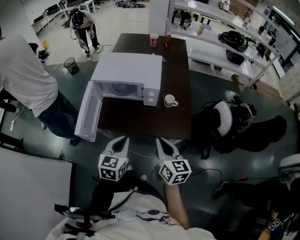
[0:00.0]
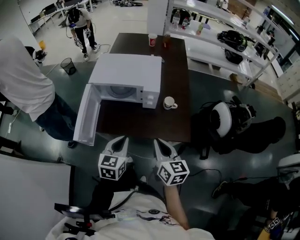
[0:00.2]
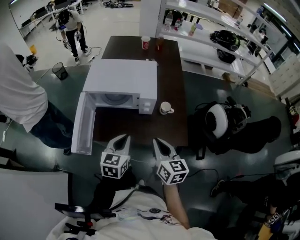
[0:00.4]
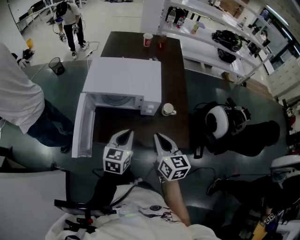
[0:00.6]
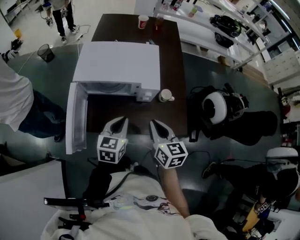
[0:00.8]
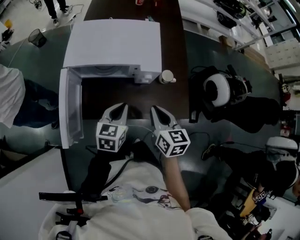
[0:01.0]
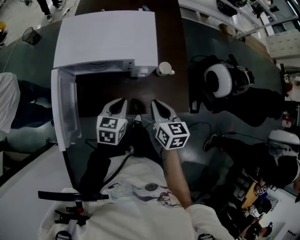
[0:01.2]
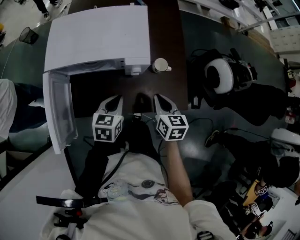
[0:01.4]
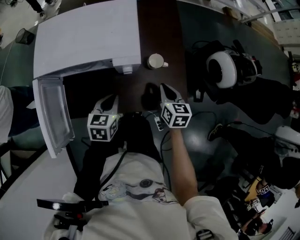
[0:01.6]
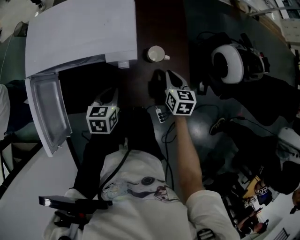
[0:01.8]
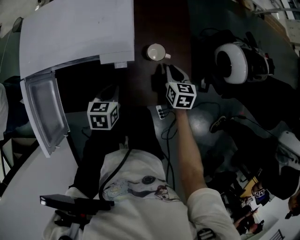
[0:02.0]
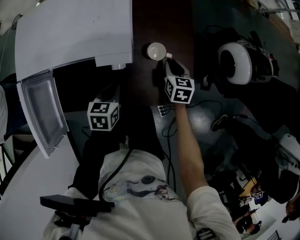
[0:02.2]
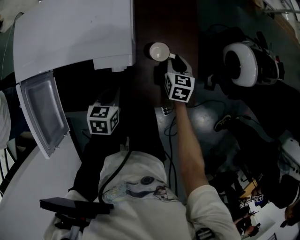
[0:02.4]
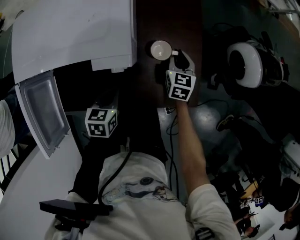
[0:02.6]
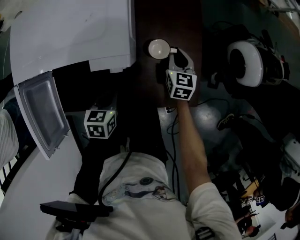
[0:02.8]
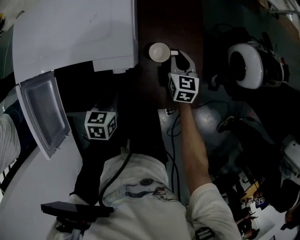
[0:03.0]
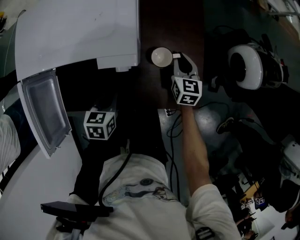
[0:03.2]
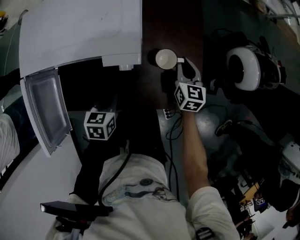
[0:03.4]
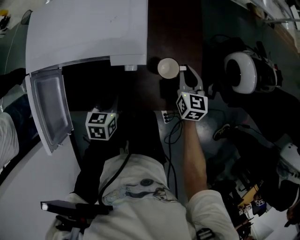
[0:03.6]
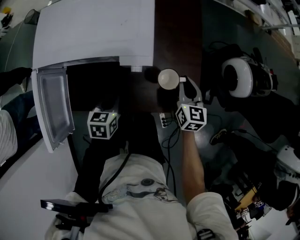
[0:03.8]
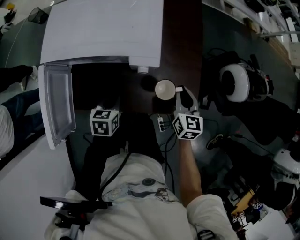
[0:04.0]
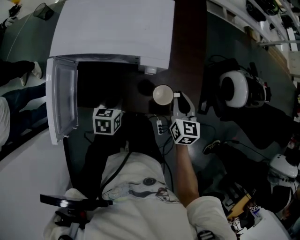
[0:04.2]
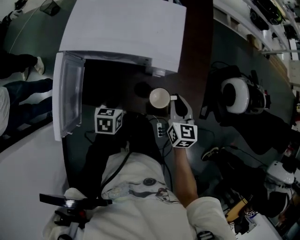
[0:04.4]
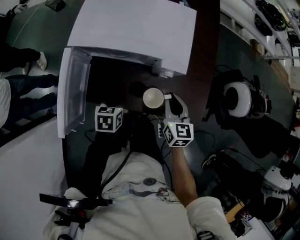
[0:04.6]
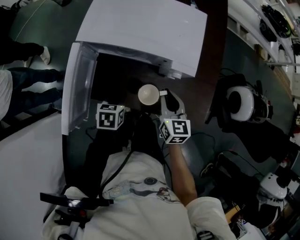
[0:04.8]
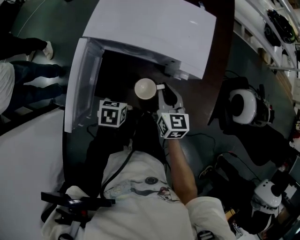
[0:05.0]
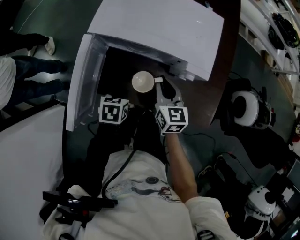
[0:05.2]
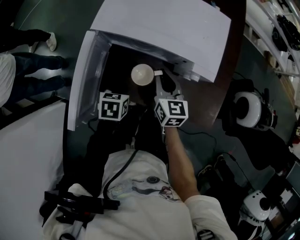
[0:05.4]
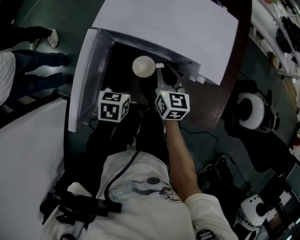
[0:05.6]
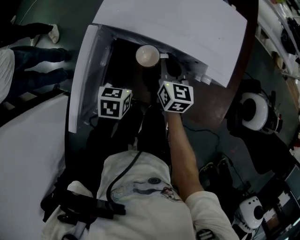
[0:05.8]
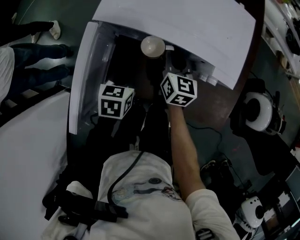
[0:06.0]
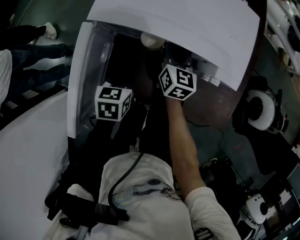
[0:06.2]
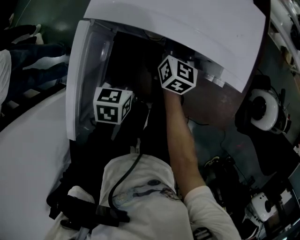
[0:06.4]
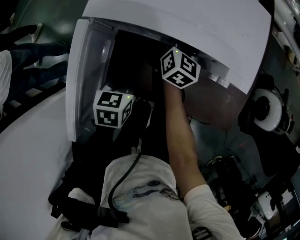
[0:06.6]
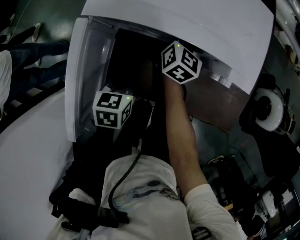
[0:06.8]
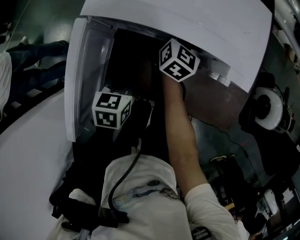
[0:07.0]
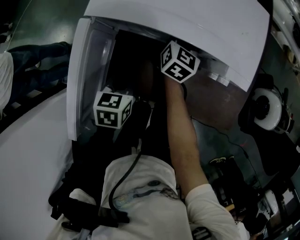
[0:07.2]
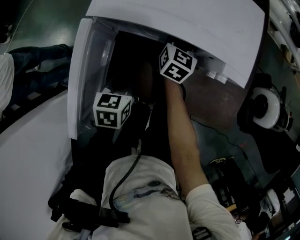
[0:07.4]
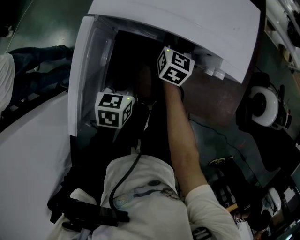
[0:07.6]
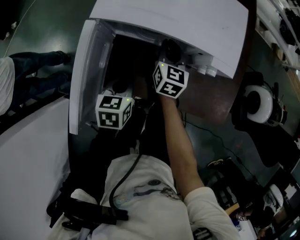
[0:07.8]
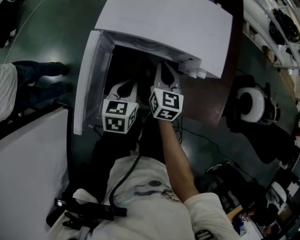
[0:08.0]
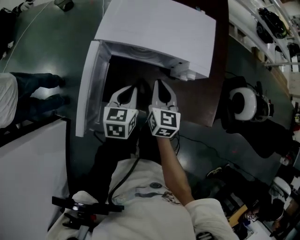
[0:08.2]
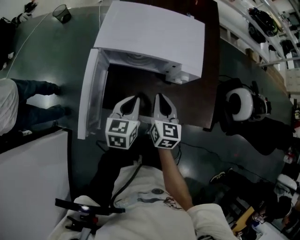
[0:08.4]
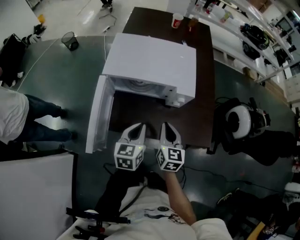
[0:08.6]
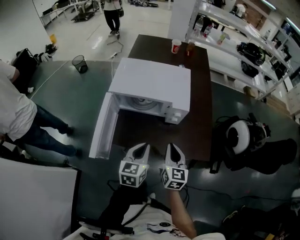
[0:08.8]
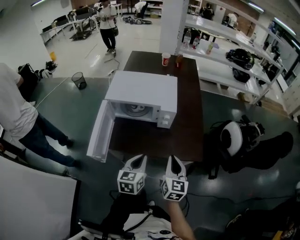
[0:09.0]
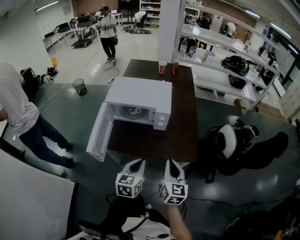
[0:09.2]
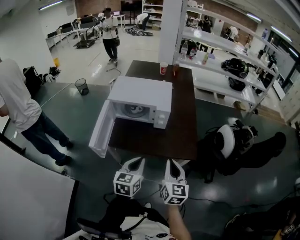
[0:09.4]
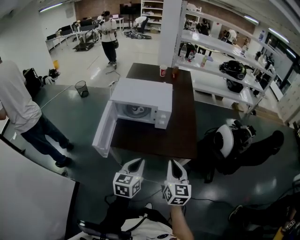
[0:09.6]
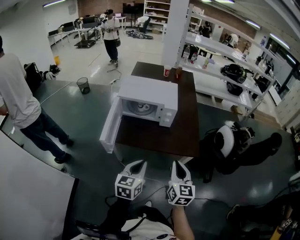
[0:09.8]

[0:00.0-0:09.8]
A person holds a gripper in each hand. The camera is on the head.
0:00.0 to 0:01.4: Both grippers move forward and downward, roughly 20 cm. The left gripper turns by some 20 degrees. The right gripper rotates about 20 degrees.
0:01.4 to 0:02.8: The right gripper goes about 20 cm forward and downward, while the left gripper travels downward by approximately 10 cm.
0:02.8 to 0:04.2: The left gripper goes roughly 5 cm to the left. The right gripper heads backward and upward, covering roughly 20 cm.
0:04.2 to 0:05.6: The right gripper moves to the left, roughly 25 cm. The left gripper travels to the left by approximately 10 cm.
0:05.6 to 0:07.0: The right gripper travels forward by about 15 cm, and swivels roughly 30 degrees.
0:07.0 to 0:08.4: The left gripper travels upward and to the right by roughly 15 cm, and changes its angle by about 20 degrees; the right gripper heads backward and upward, covering about 25 cm.
0:08.4 to 0:09.8: The right gripper heads backward, to the right and upward, covering approximately 30 cm; the left gripper moves backward and upward, approximately 25 cm.

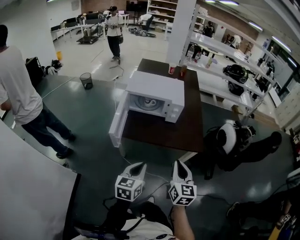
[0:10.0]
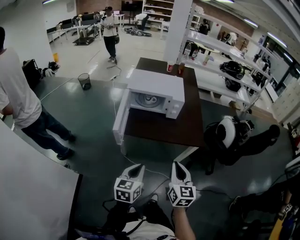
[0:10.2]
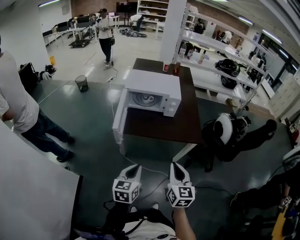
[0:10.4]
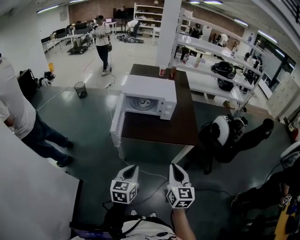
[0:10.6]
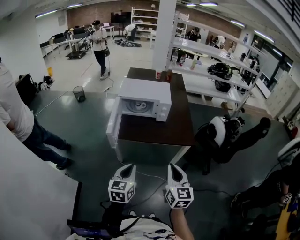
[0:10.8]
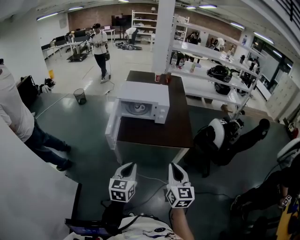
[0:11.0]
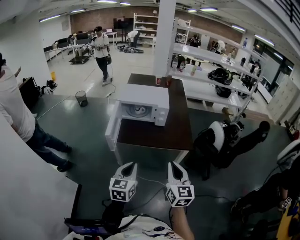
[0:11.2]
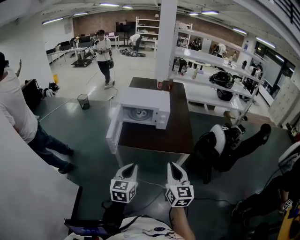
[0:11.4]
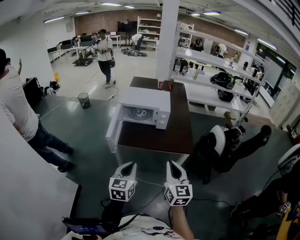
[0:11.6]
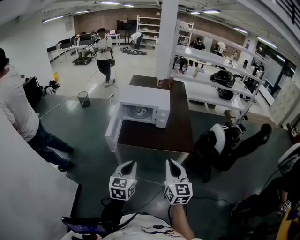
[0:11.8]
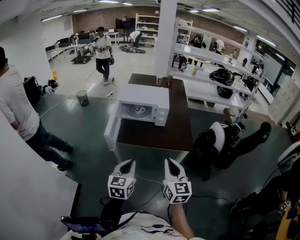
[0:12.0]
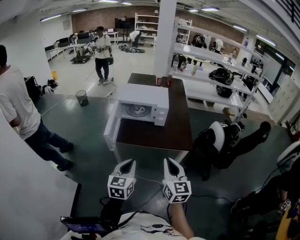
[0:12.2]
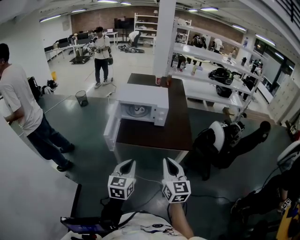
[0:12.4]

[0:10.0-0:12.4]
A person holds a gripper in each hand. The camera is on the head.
0:10.0 to 0:11.2: The right gripper travels backward by about 5 cm. The left gripper ends up some 5 cm from where it was.
0:11.2 to 0:12.4: The grippers make only small movements.

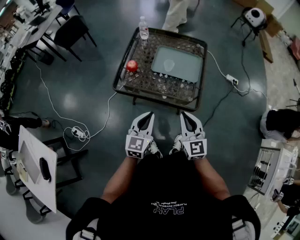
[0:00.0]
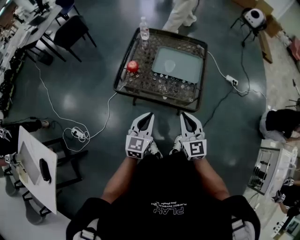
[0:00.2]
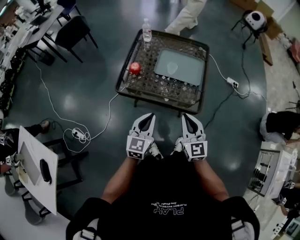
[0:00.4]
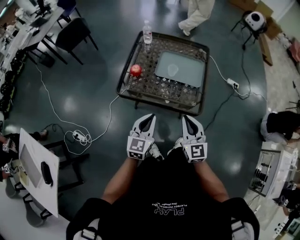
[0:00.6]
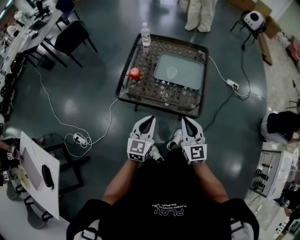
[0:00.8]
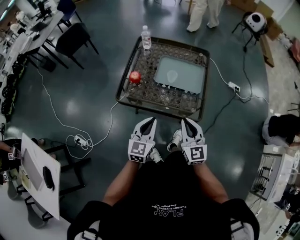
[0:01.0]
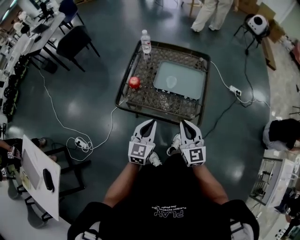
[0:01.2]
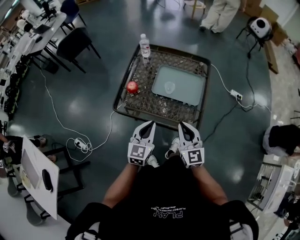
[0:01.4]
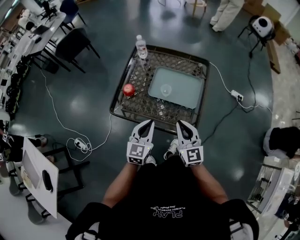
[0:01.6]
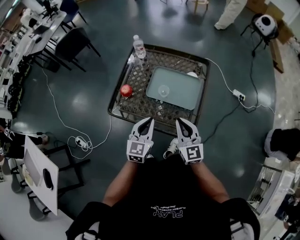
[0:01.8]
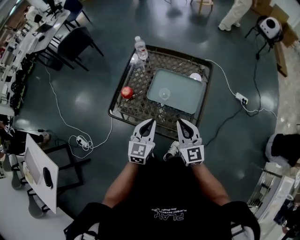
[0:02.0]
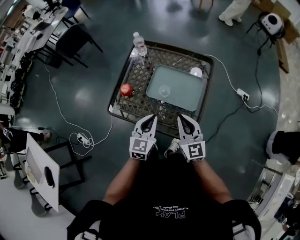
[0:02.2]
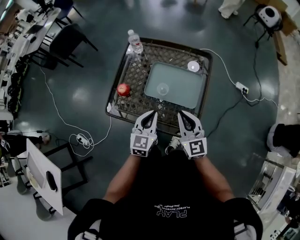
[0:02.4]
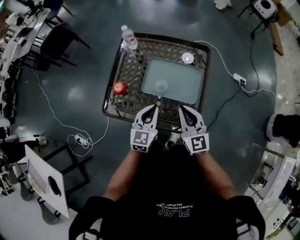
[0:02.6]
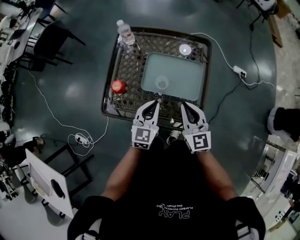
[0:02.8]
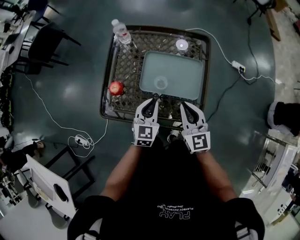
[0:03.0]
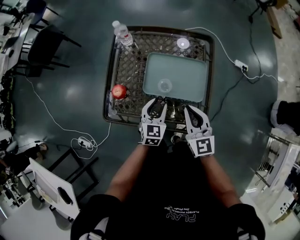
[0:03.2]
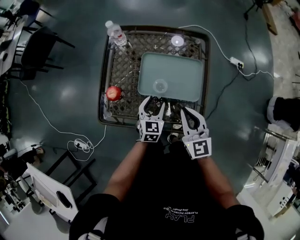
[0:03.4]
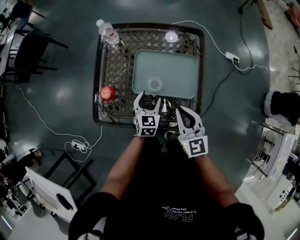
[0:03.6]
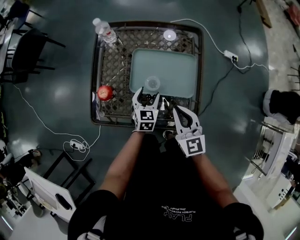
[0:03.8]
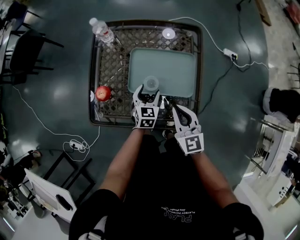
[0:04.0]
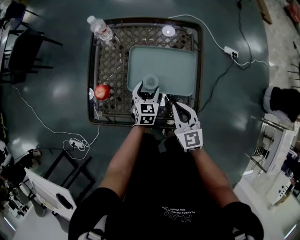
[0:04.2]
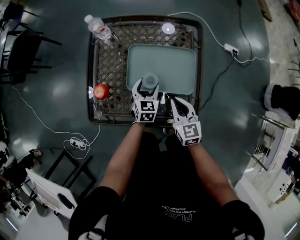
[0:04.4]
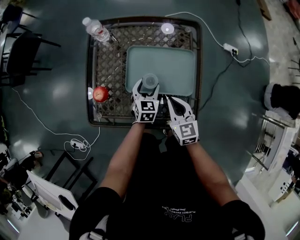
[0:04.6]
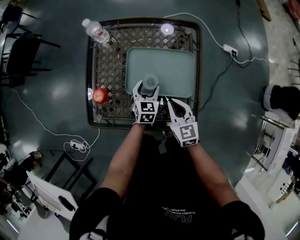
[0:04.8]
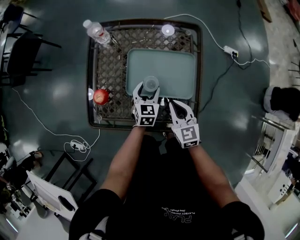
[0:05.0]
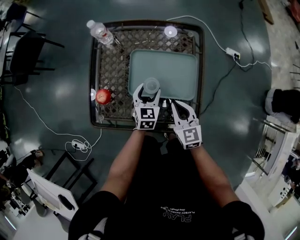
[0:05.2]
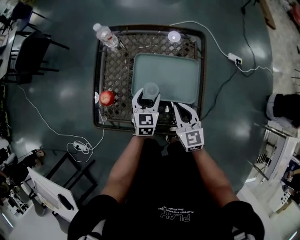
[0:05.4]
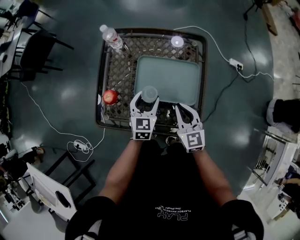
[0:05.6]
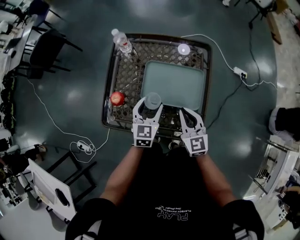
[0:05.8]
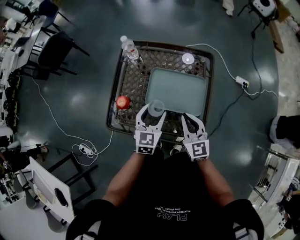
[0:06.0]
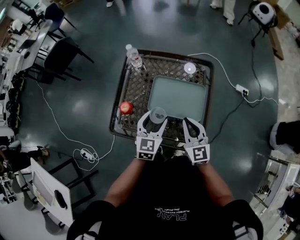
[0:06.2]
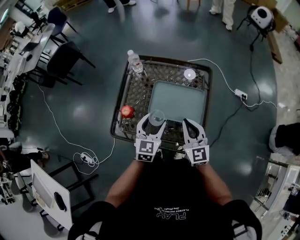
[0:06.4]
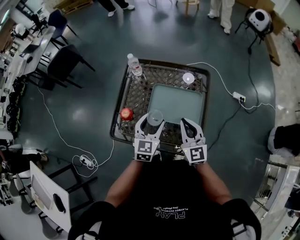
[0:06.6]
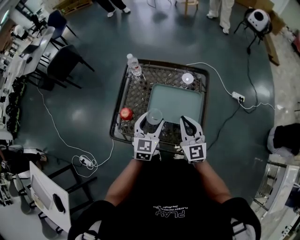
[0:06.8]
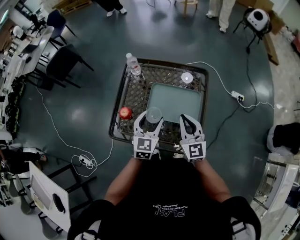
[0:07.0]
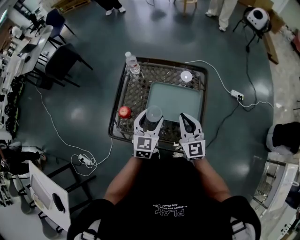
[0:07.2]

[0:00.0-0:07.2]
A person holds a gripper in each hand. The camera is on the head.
0:00.0 to 0:01.4: The two grippers go about 10 cm forward.
0:01.4 to 0:02.8: The left gripper shifts roughly 15 cm forward, to the right and downward; the right gripper goes about 15 cm forward.
0:02.8 to 0:04.4: The right gripper shifts roughly 10 cm downward, while the left gripper moves downward and forward, about 20 cm, and opens.
0:04.4 to 0:05.8: The right gripper travels upward by roughly 5 cm. Meanwhile the left gripper heads upward, covering about 15 cm.
0:05.8 to 0:07.2: Both grippers move upward, roughly 10 cm.

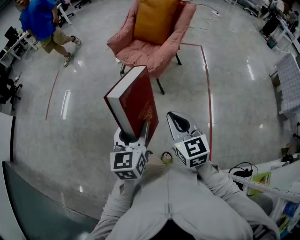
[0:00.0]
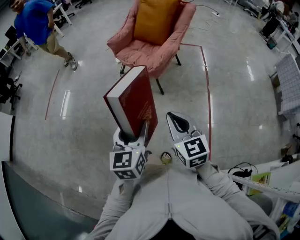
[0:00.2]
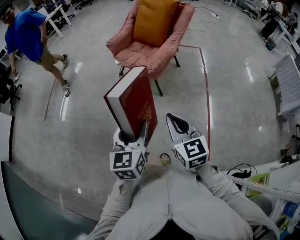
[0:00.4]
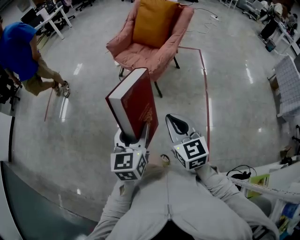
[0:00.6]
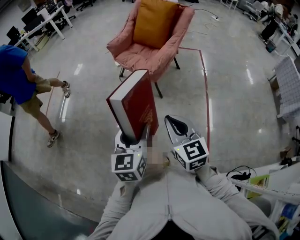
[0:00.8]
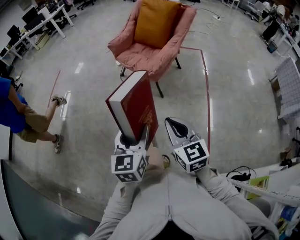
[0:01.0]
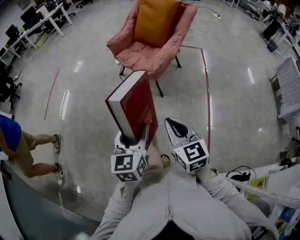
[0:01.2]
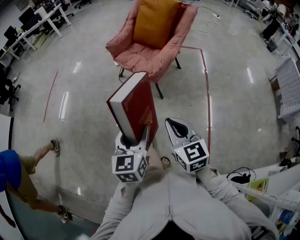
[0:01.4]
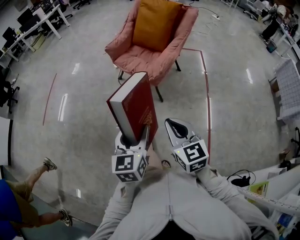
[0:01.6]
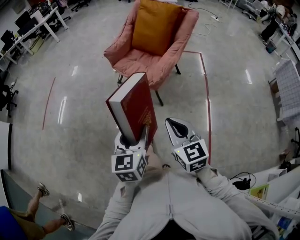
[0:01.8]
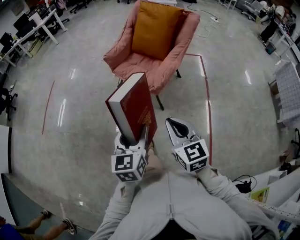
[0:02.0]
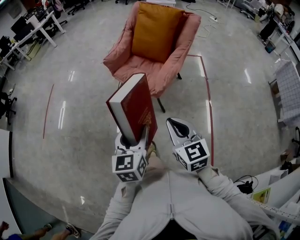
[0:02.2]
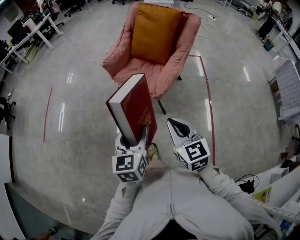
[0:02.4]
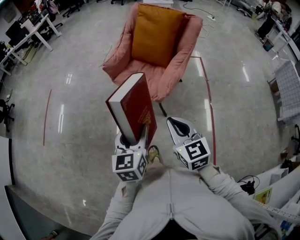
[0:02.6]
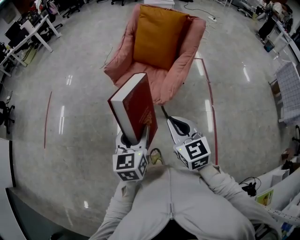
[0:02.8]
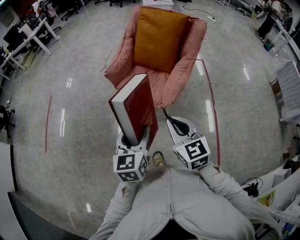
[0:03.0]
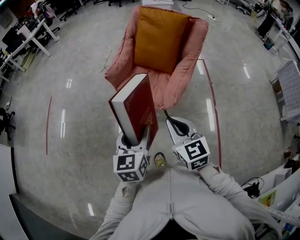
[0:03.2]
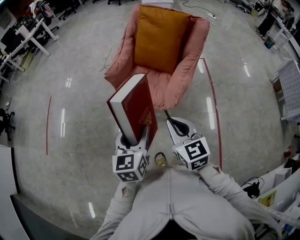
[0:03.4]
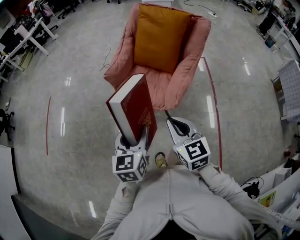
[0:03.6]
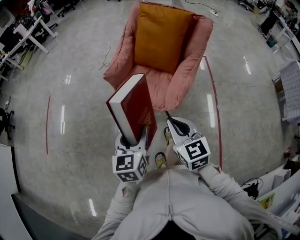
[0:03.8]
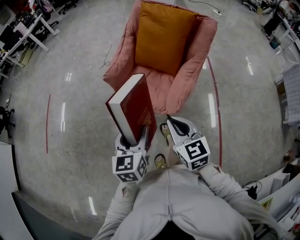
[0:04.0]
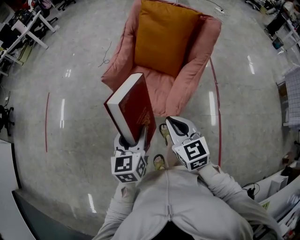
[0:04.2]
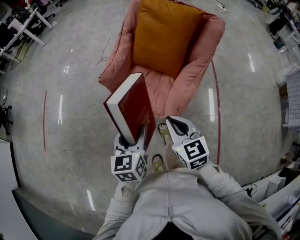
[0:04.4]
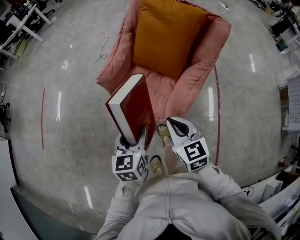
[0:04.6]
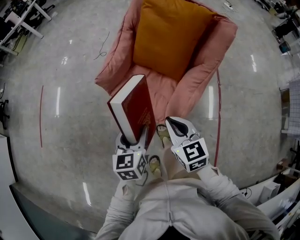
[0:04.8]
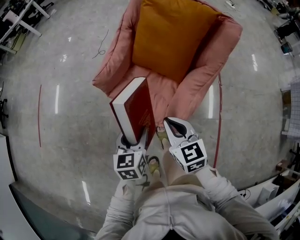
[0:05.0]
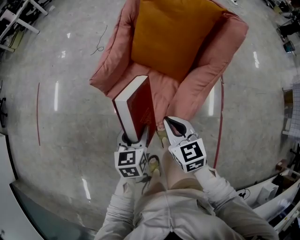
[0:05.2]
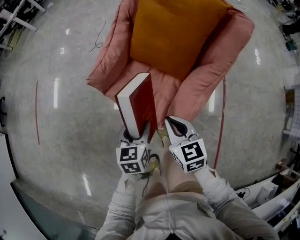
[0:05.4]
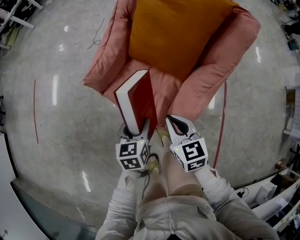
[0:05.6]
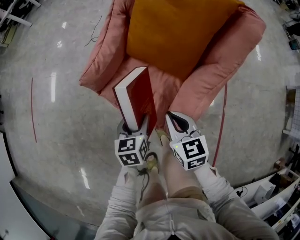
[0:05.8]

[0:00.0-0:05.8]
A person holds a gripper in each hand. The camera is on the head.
0:00.0 to 0:01.4: There are only small adjustments of the grippers.
0:01.4 to 0:02.8: The two grippers go about 25 cm forward.
0:02.8 to 0:04.4: Both grippers travel together forward, approximately 20 cm.
0:04.4 to 0:05.8: The left gripper moves downward and forward, about 25 cm. Meanwhile the right gripper shifts approximately 20 cm forward and downward.
